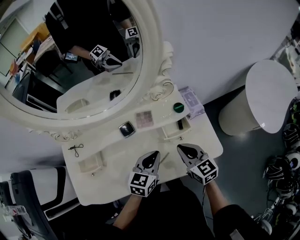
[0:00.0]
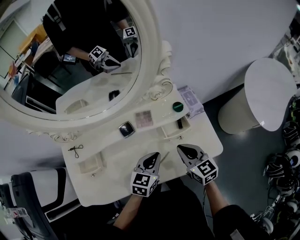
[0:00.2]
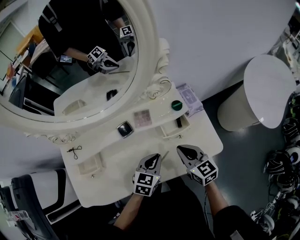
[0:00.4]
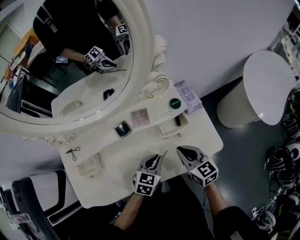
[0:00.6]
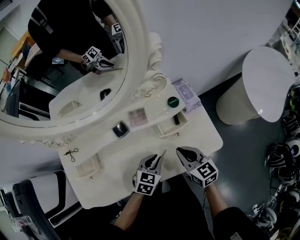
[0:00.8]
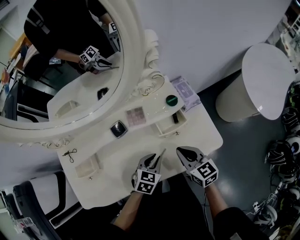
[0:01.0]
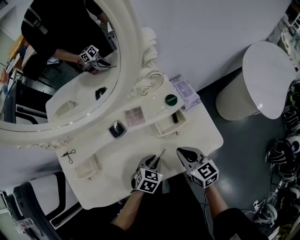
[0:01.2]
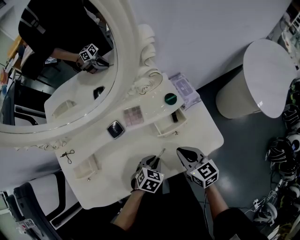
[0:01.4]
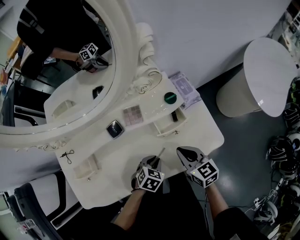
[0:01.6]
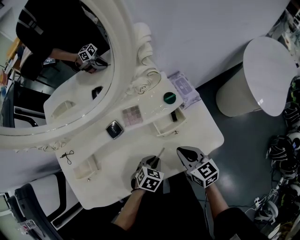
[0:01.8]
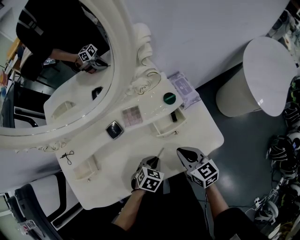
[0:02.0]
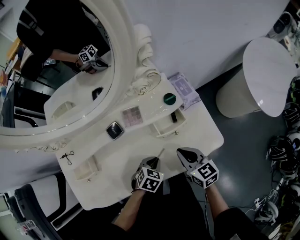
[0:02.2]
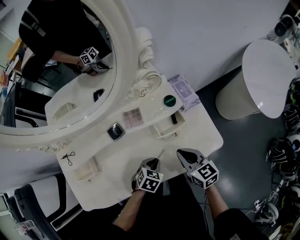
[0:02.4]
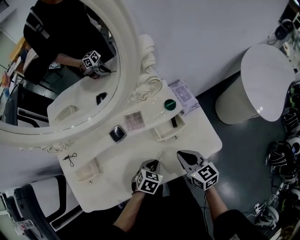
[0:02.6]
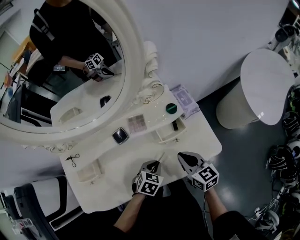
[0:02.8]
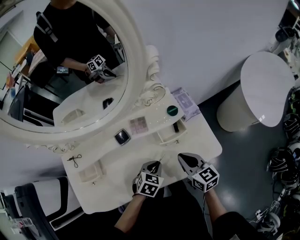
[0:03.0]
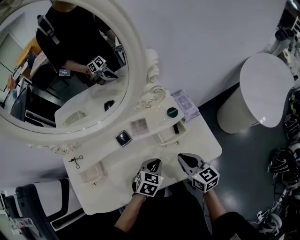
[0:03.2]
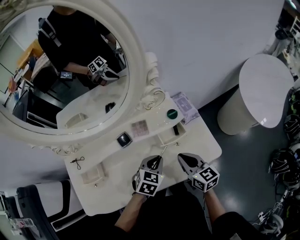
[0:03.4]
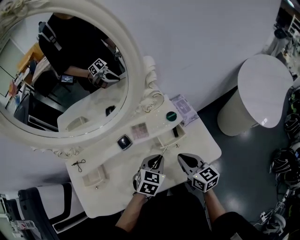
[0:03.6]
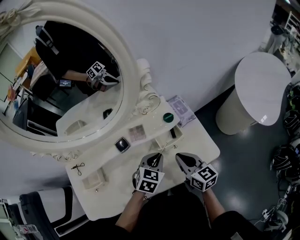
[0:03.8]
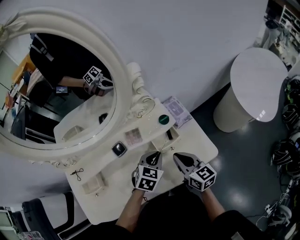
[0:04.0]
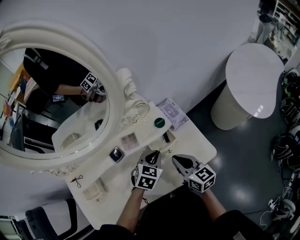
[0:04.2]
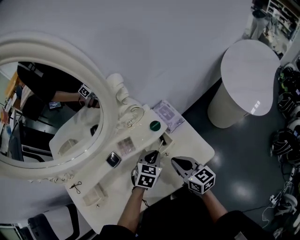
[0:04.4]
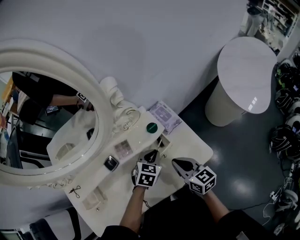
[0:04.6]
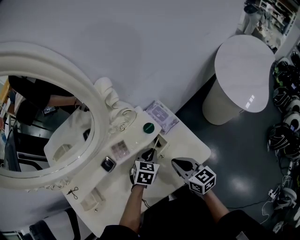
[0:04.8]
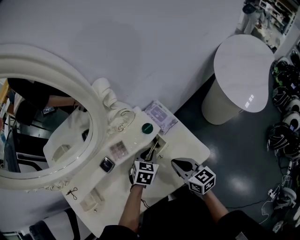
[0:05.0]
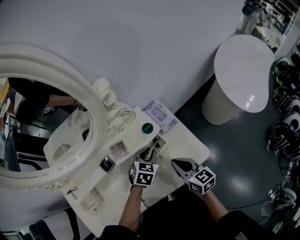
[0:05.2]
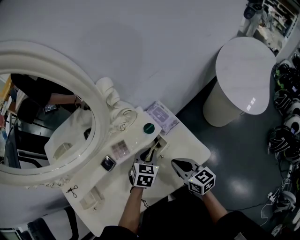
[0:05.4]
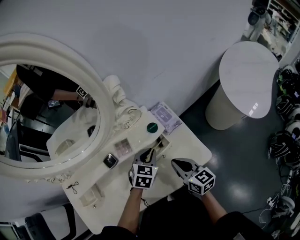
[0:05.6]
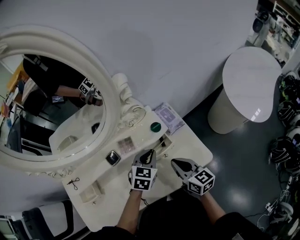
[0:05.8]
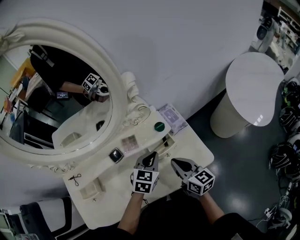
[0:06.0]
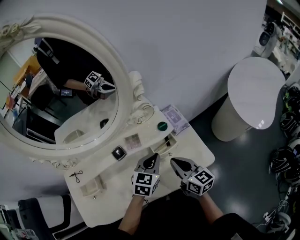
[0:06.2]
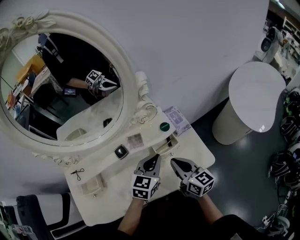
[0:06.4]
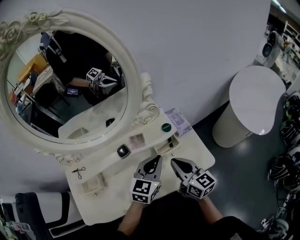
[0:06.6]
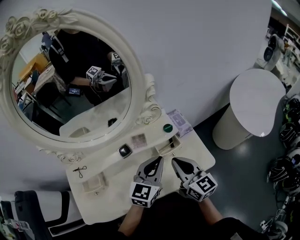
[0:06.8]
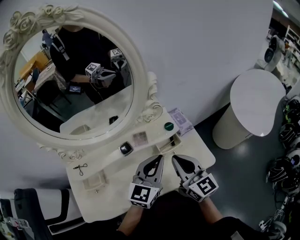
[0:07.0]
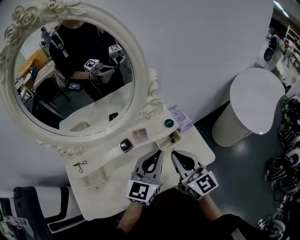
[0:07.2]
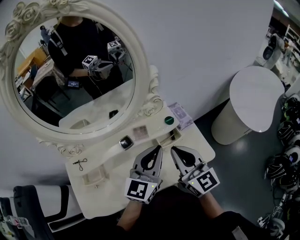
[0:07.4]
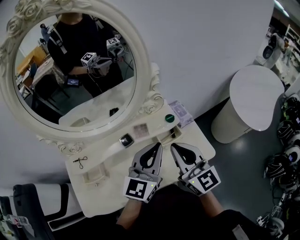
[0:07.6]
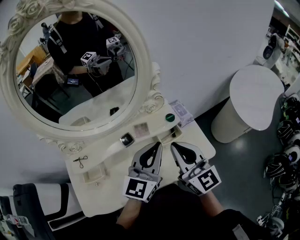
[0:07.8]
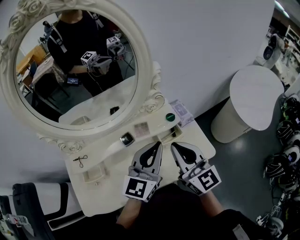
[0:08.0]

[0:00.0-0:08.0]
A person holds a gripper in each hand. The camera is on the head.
0:00.0 to 0:01.6: The left gripper moves downward, approximately 15 cm, and tips its fingers downward by roughly 40 degrees; the right gripper moves downward, approximately 5 cm.
0:01.6 to 0:03.2: The left gripper heads upward, covering roughly 10 cm.
0:03.2 to 0:04.8: The right gripper heads to the right, covering approximately 5 cm. The left gripper moves forward and to the right, some 15 cm.
0:04.8 to 0:06.4: The right gripper heads upward, covering roughly 5 cm, while the left gripper heads upward and backward, covering roughly 15 cm, and turns by approximately 30 degrees.
0:06.4 to 0:08.0: The grippers both shift upward by approximately 15 cm. The right gripper rotates roughly 30 degrees. Meanwhile the left gripper swivels approximately 30 degrees.

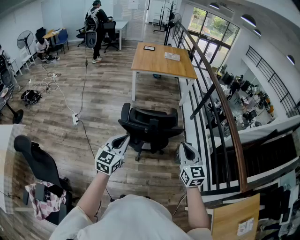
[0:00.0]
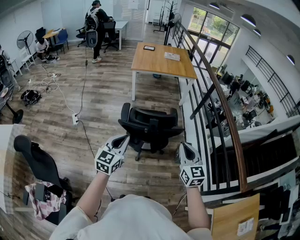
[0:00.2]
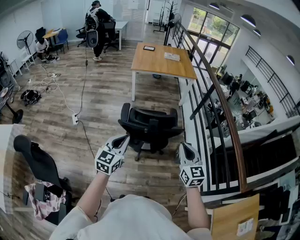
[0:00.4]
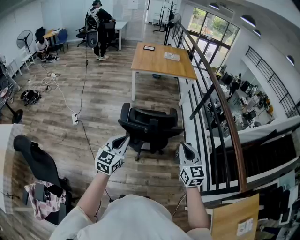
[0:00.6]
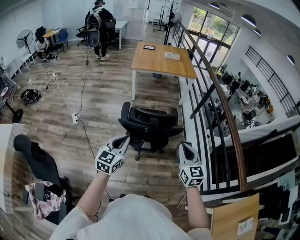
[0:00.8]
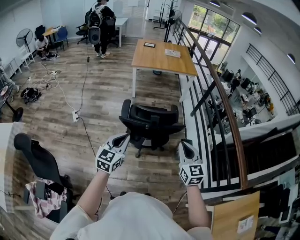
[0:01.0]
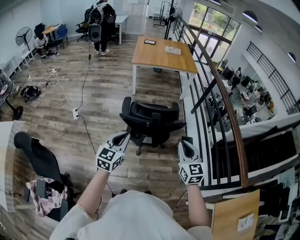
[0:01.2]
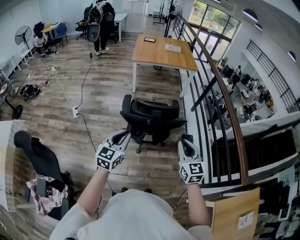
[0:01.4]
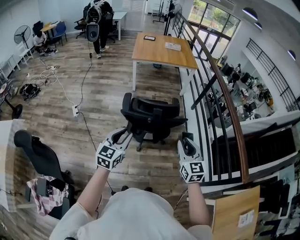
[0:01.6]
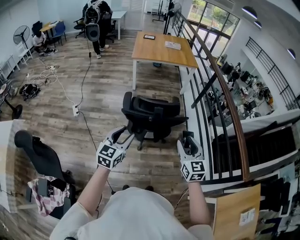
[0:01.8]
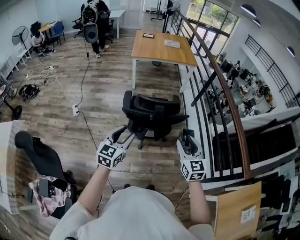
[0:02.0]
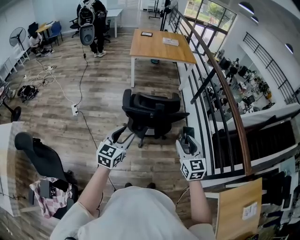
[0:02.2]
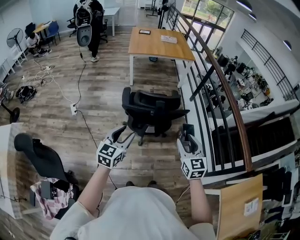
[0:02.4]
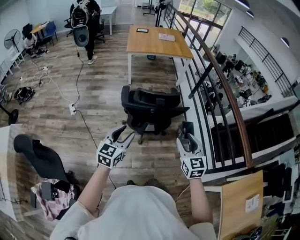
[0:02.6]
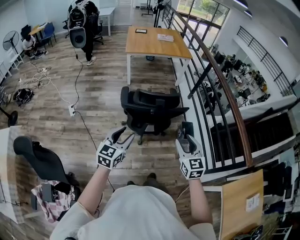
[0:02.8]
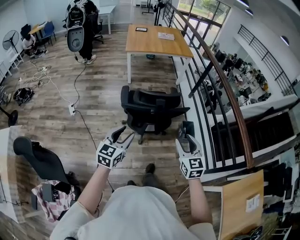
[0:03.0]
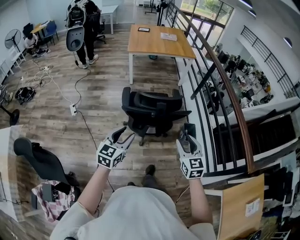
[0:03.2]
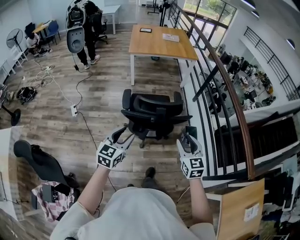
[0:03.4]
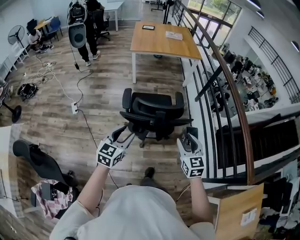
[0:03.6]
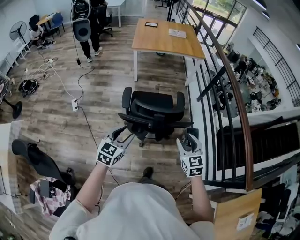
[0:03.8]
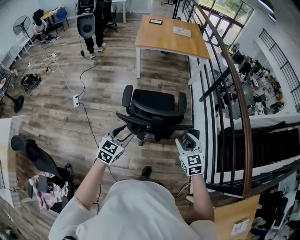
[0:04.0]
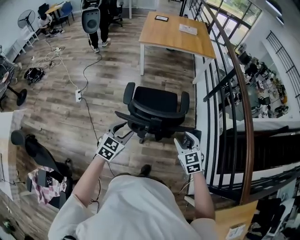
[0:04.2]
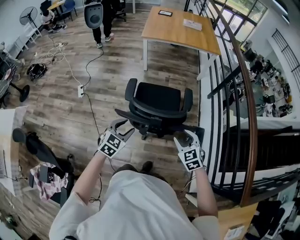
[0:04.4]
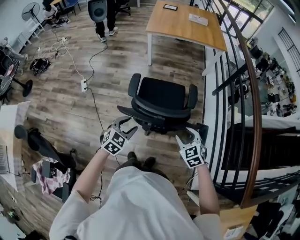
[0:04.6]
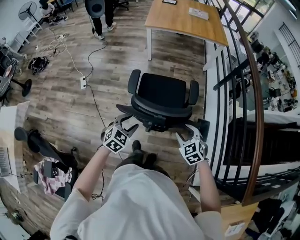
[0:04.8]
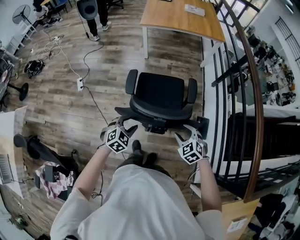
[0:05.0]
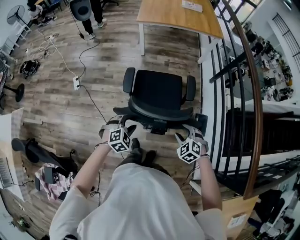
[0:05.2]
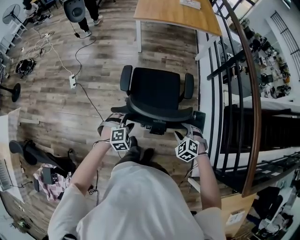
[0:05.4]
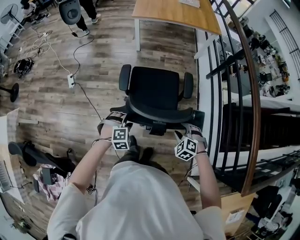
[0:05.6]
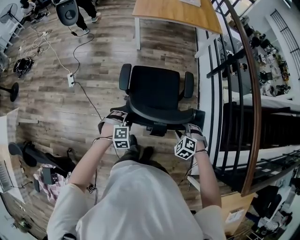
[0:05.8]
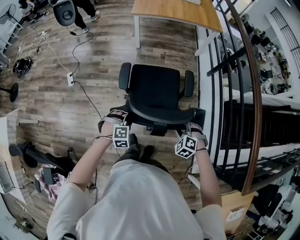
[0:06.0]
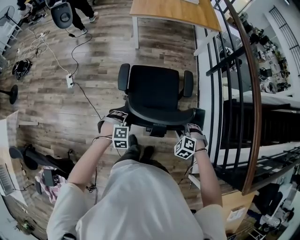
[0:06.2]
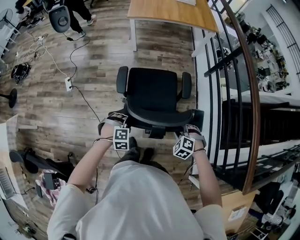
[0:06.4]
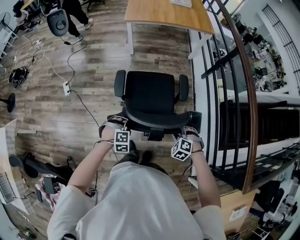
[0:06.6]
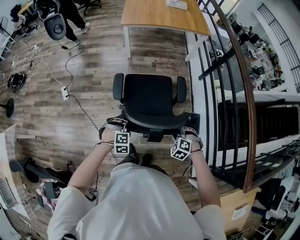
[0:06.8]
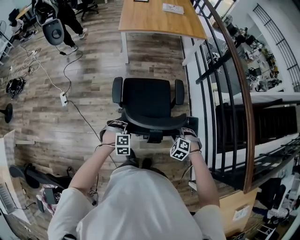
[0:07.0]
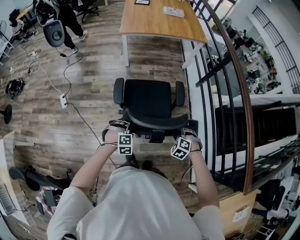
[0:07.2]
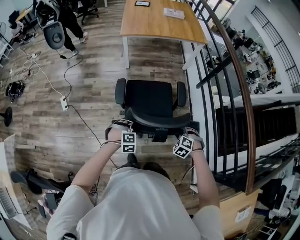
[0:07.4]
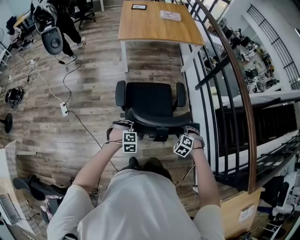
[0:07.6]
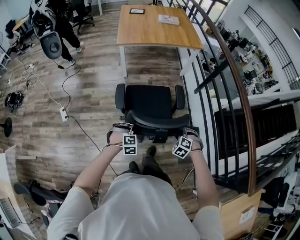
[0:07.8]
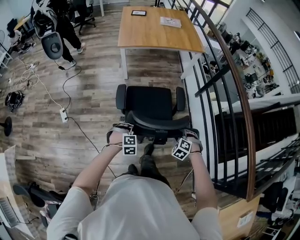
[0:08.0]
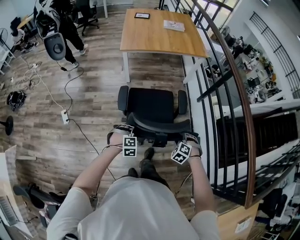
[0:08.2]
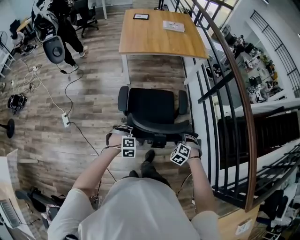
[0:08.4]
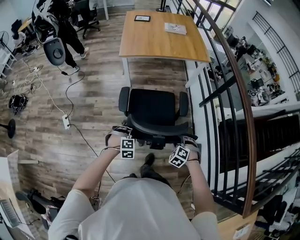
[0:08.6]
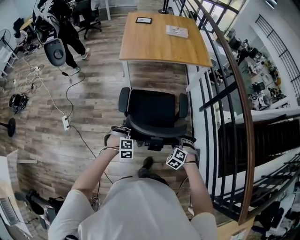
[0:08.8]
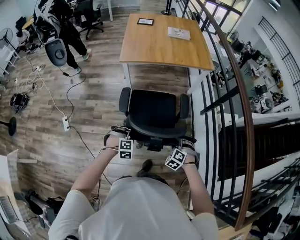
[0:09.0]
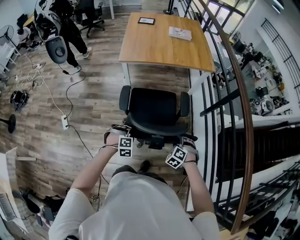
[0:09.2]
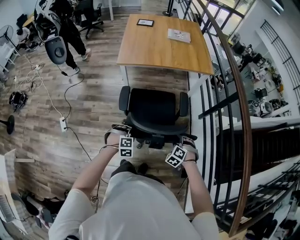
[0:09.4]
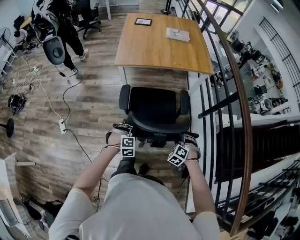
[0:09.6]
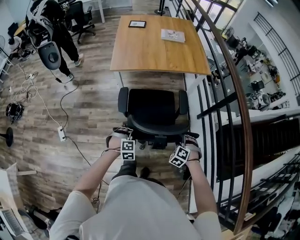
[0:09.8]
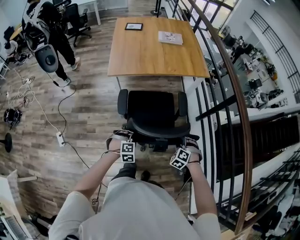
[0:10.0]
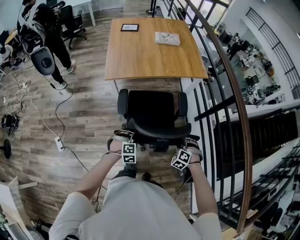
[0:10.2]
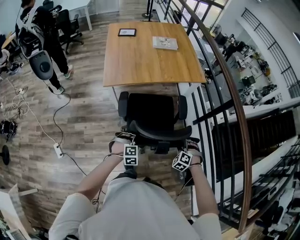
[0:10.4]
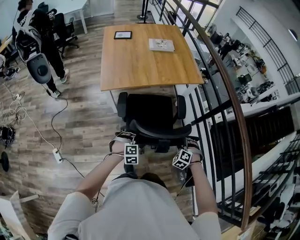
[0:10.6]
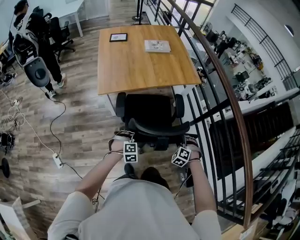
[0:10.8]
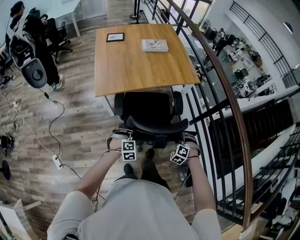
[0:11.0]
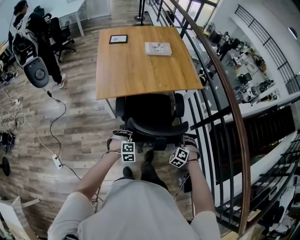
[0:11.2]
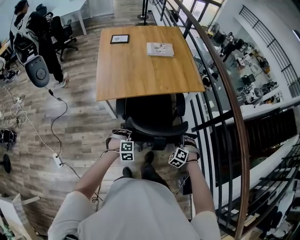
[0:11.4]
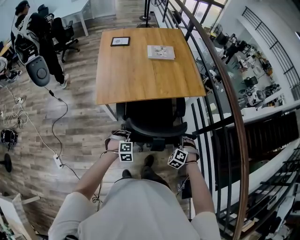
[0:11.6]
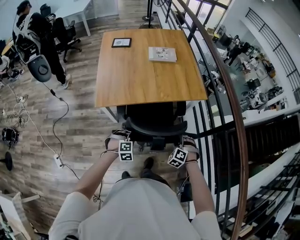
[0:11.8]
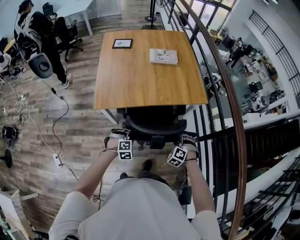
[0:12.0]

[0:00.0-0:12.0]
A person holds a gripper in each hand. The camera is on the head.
0:00.0 to 0:01.6: The left gripper opens its fingers.
0:01.6 to 0:03.0: The right gripper ends up about 5 cm from where it was, and opens up.
0:03.0 to 0:04.4: The two grippers go roughly 25 cm forward and downward. The left gripper swivels some 30 degrees; the right gripper rotates some 30 degrees.
0:04.4 to 0:06.0: The grippers both shift downward and forward by approximately 15 cm. The right gripper rotates some 40 degrees. Meanwhile the left gripper rolls clockwise, seen from behind, by some 50 degrees.
0:06.0 to 0:07.6: The grippers both shift forward by approximately 10 cm.
0:07.6 to 0:09.0: The grippers both shift forward by some 20 cm.
0:09.0 to 0:10.4: The grippers both shift forward by approximately 20 cm.
0:10.4 to 0:12.0: Both grippers travel together forward, some 25 cm.

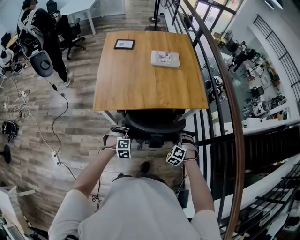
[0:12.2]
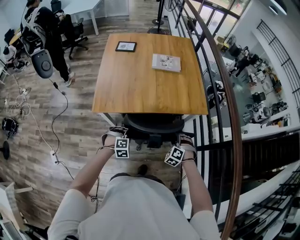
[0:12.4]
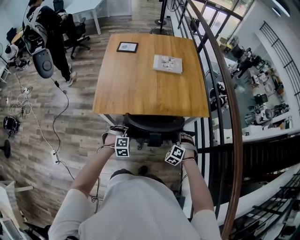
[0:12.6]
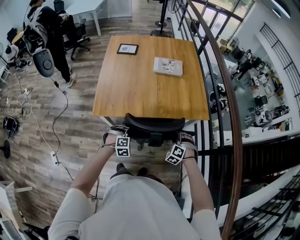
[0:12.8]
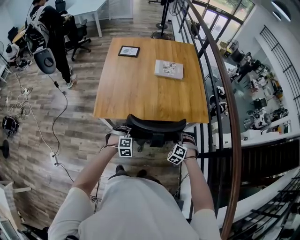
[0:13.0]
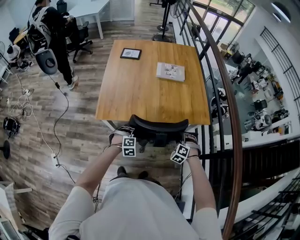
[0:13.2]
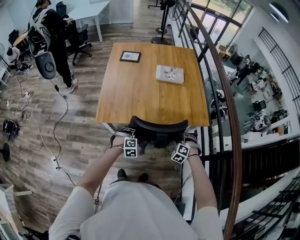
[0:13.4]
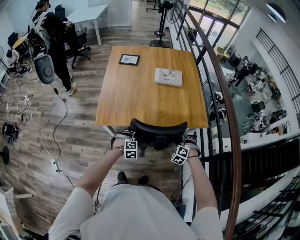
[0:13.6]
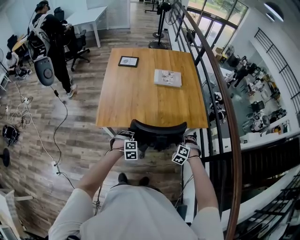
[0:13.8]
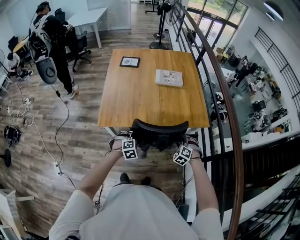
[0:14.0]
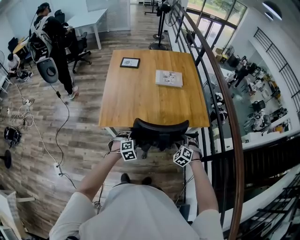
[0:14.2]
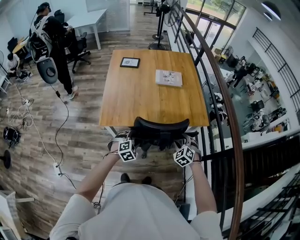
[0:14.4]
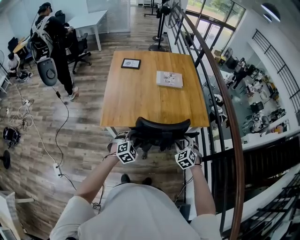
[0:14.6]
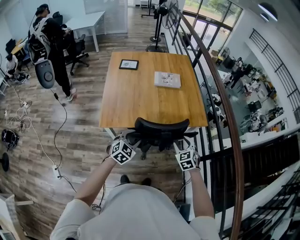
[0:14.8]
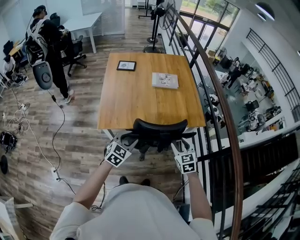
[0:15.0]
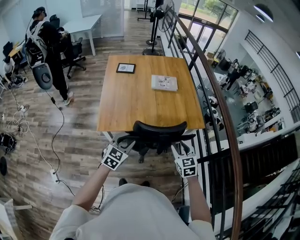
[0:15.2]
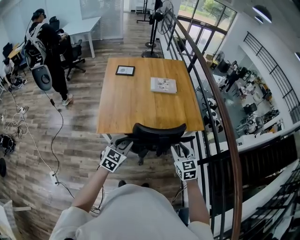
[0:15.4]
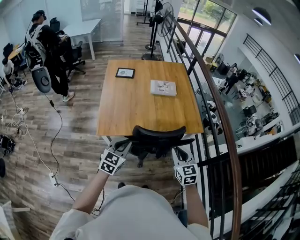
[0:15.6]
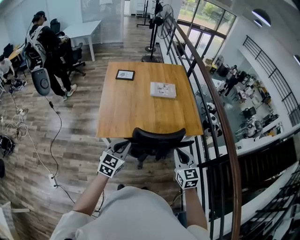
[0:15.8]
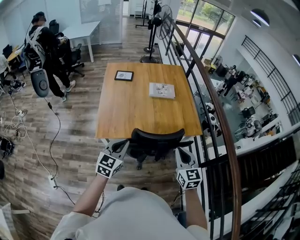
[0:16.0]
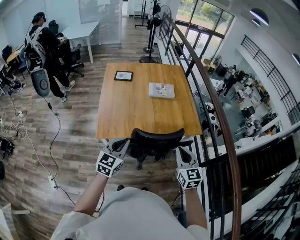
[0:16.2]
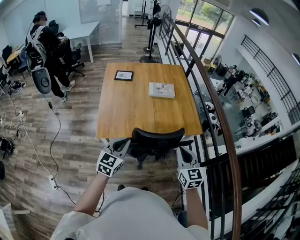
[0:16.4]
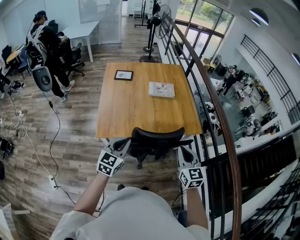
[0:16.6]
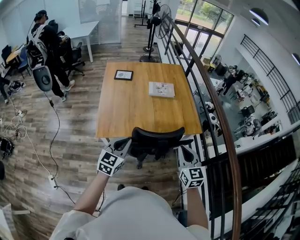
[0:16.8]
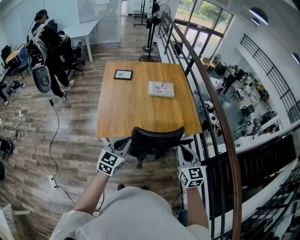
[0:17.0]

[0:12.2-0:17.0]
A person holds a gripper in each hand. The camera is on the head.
0:12.2 to 0:13.8: The grippers both shift forward by about 10 cm. The left gripper opens.
0:13.8 to 0:15.4: The grippers both shift upward by some 20 cm. The right gripper rotates around the line of its fingers by roughly 60 degrees, clockwise from behind; the left gripper angles its fingers upward, by approximately 40 degrees, and closes its fingers.
0:15.4 to 0:17.0: Both grippers travel together upward, approximately 5 cm. The right gripper closes up; the left gripper closes up.
